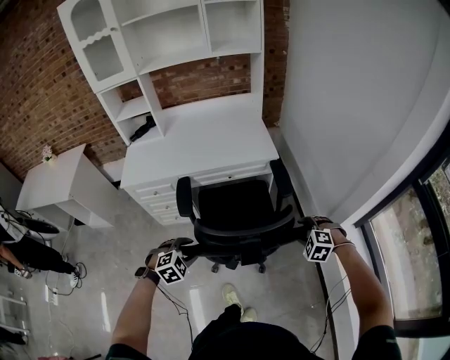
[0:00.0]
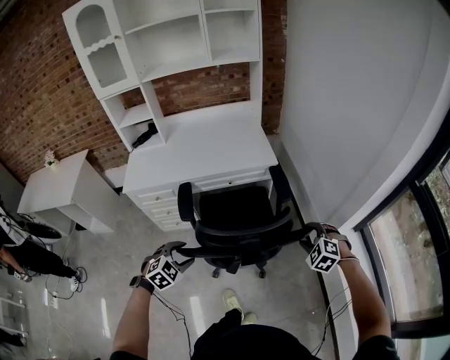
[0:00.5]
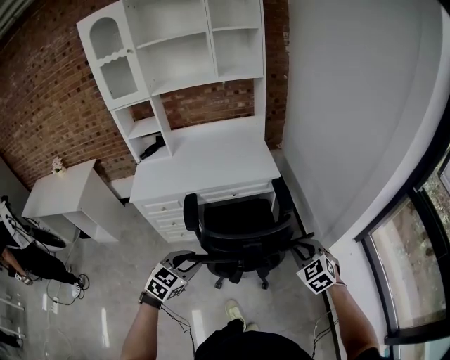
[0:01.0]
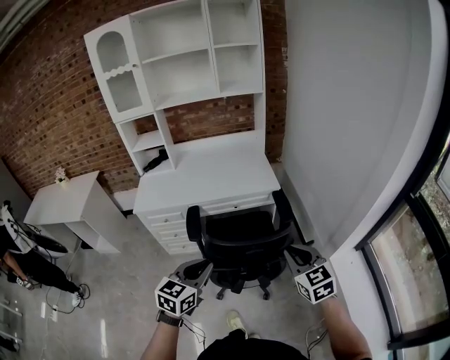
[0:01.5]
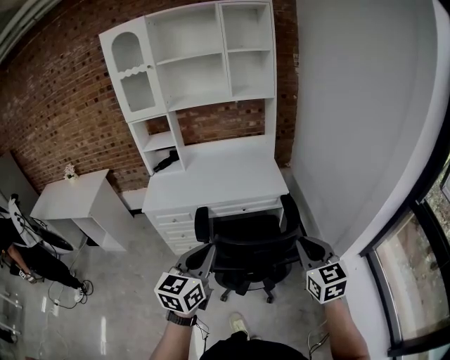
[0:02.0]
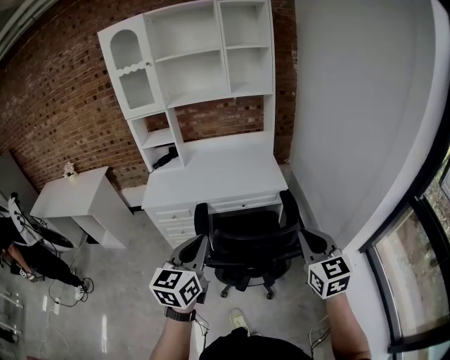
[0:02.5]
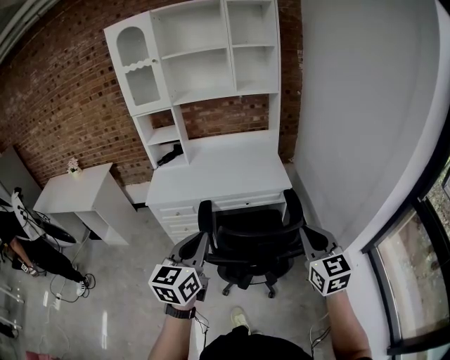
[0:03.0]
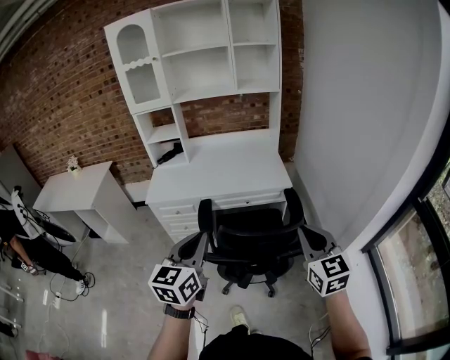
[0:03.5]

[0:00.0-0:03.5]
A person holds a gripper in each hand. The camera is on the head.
0:00.0 to 0:02.0: Both grippers travel together upward, approximately 30 cm. The right gripper tilts its fingers approximately 50 degrees upward, and closes up, while the left gripper points its fingers about 50 degrees further upward, and closes its fingers.
0:02.0 to 0:03.5: There are only small adjustments of the grippers.

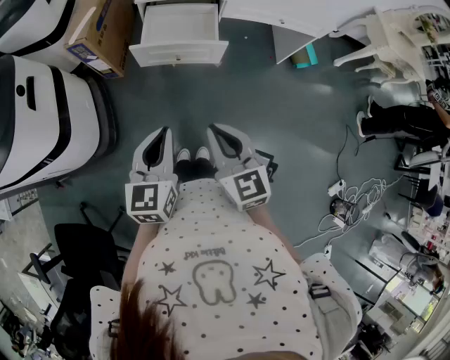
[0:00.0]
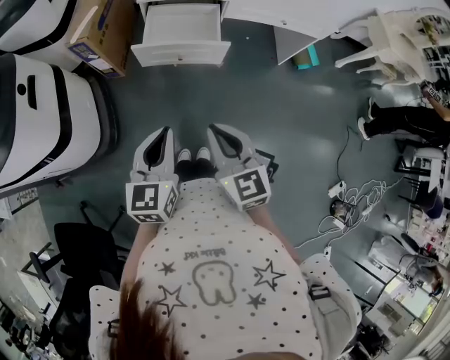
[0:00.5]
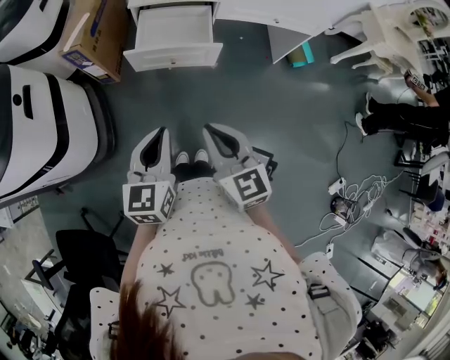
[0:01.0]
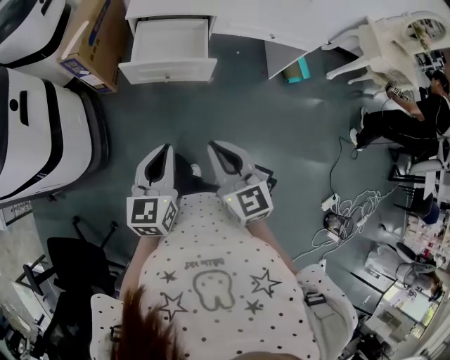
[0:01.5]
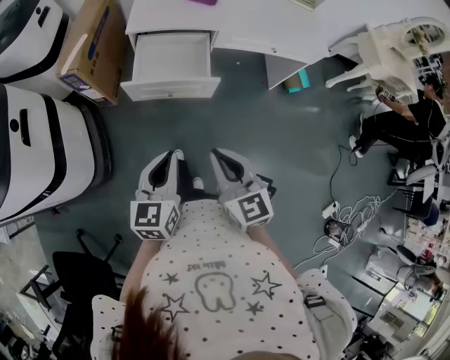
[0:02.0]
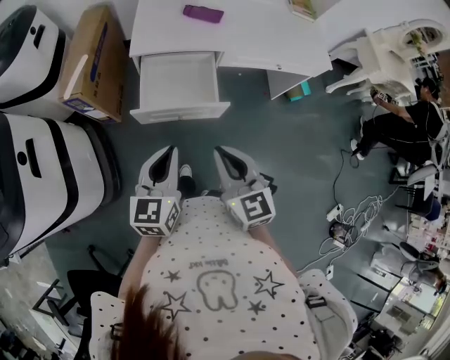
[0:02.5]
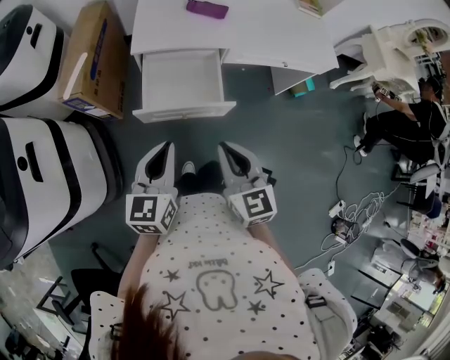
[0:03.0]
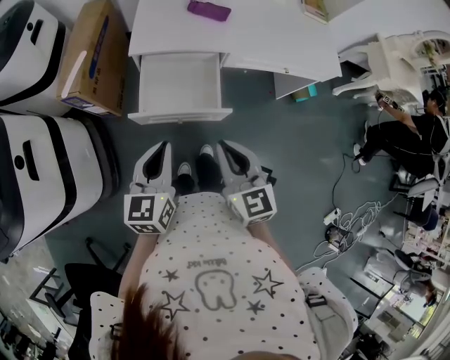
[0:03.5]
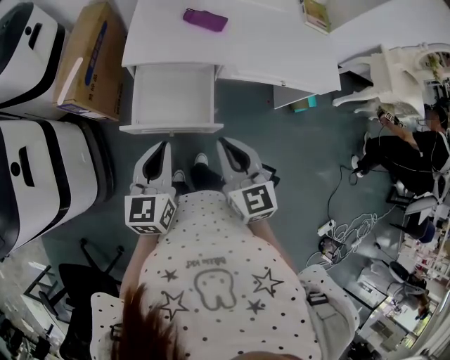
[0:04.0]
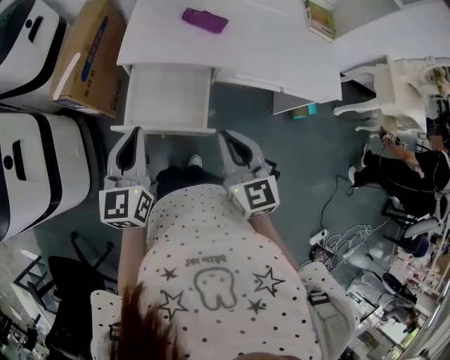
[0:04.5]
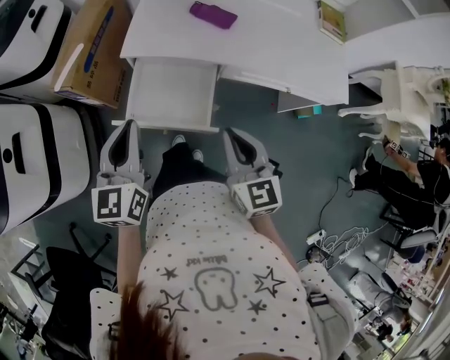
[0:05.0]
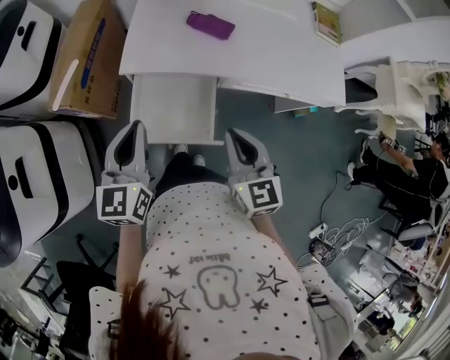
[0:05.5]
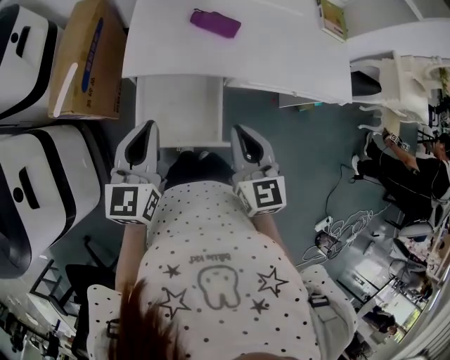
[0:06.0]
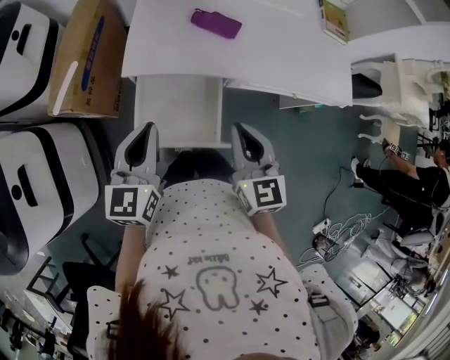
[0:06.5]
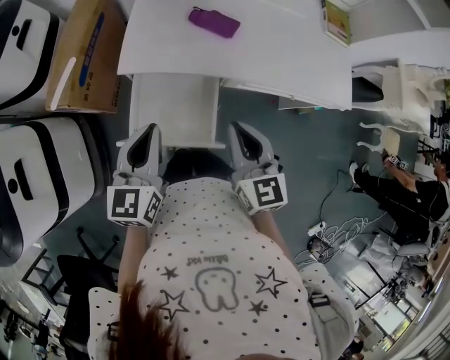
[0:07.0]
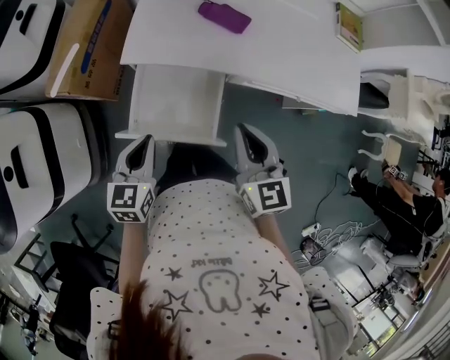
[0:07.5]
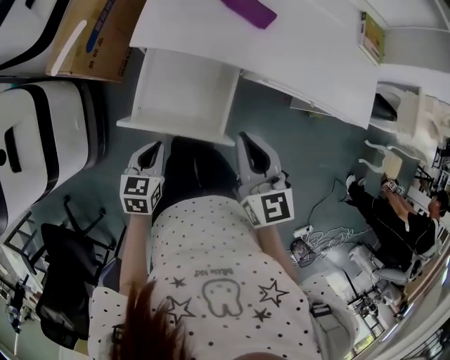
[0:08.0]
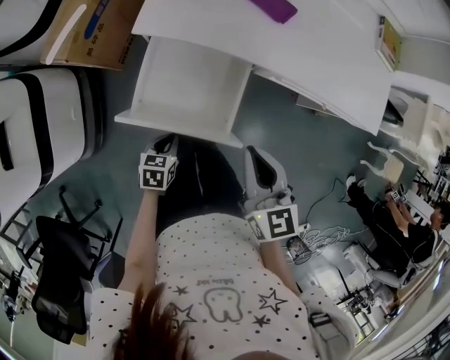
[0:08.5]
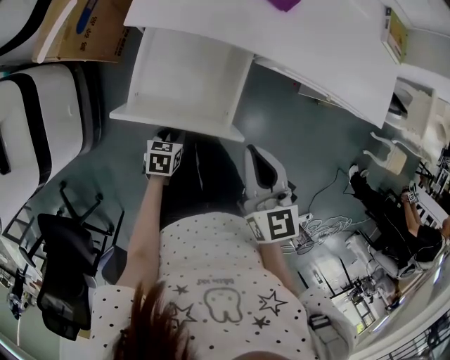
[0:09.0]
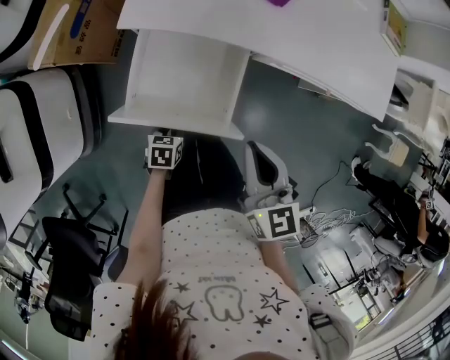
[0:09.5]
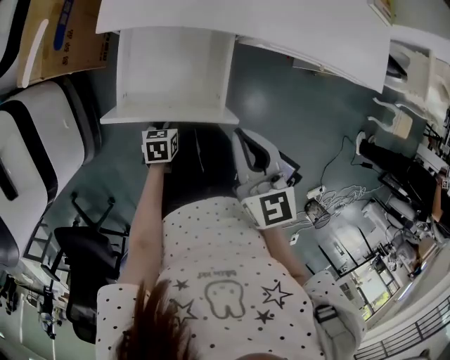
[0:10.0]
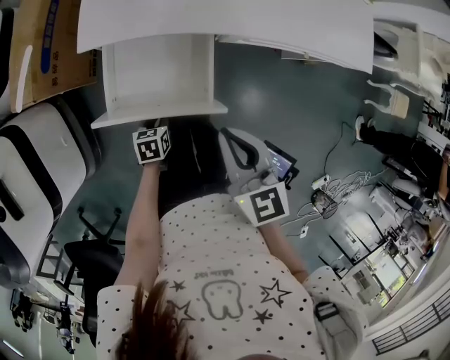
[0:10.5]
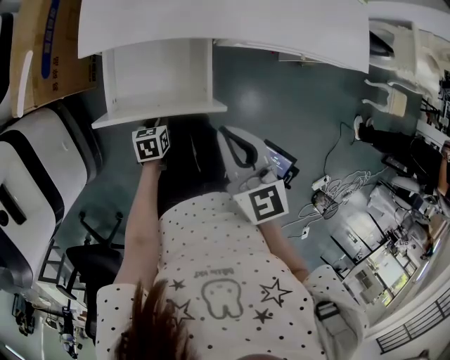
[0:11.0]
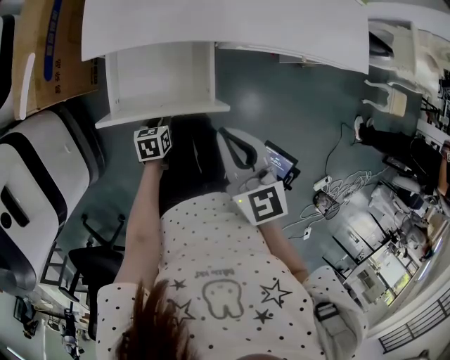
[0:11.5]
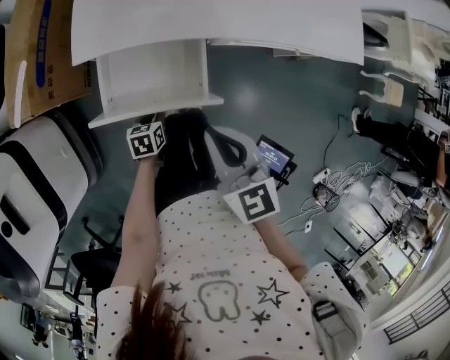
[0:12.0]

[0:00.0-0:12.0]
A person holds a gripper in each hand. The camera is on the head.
0:00.0 to 0:02.0: The grippers both shift forward by roughly 5 cm.
0:02.0 to 0:04.0: Both grippers move forward, some 20 cm.
0:04.0 to 0:06.0: Both grippers move forward, approximately 15 cm.
0:06.0 to 0:08.0: The left gripper shifts approximately 20 cm downward and backward, and tilts its fingers about 30 degrees downward.
0:08.0 to 0:10.0: The right gripper shifts by about 5 cm. The left gripper shifts approximately 20 cm downward, changes its angle by approximately 20 degrees, and opens its fingers.
0:10.0 to 0:12.0: The left gripper travels forward by about 5 cm.

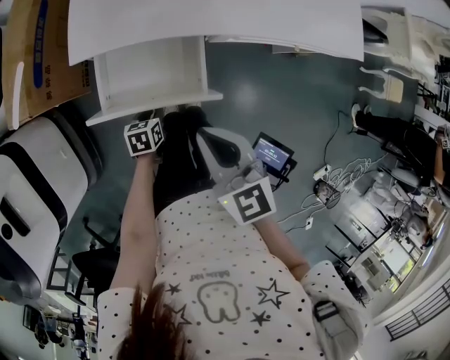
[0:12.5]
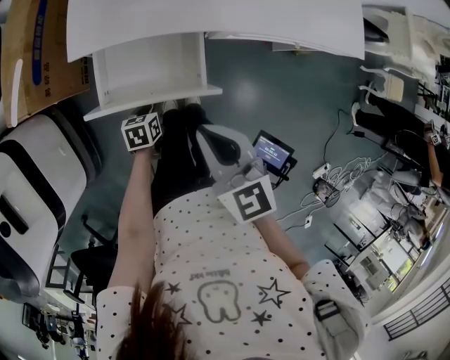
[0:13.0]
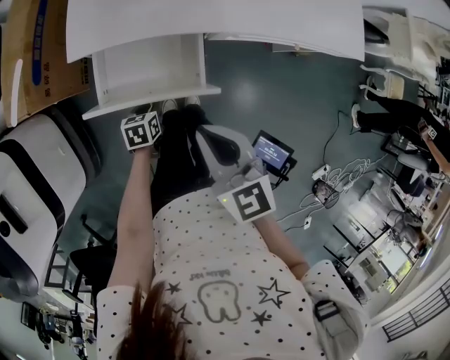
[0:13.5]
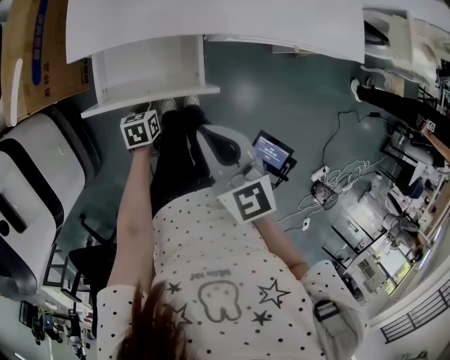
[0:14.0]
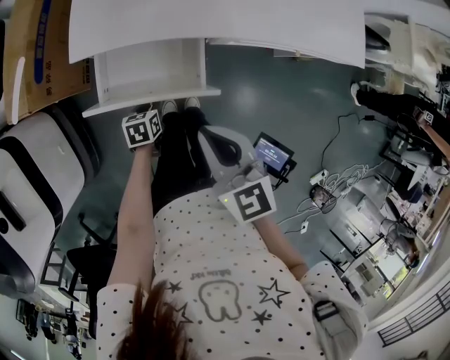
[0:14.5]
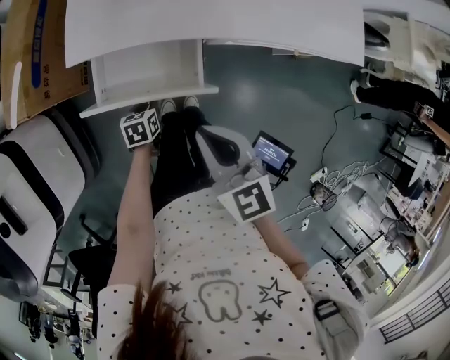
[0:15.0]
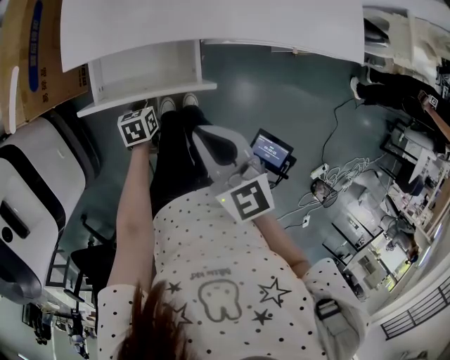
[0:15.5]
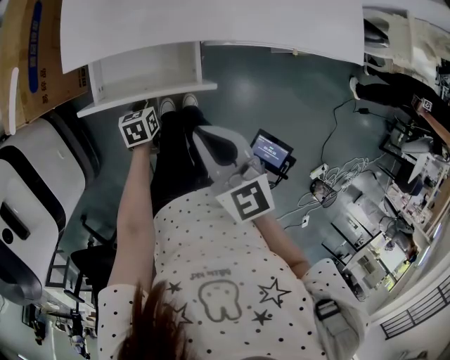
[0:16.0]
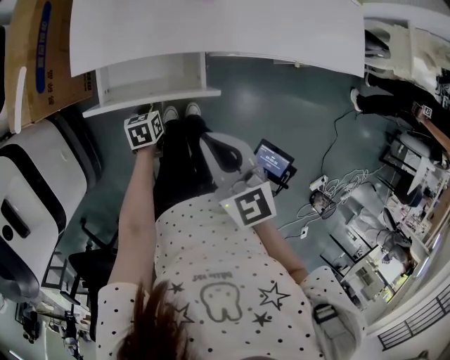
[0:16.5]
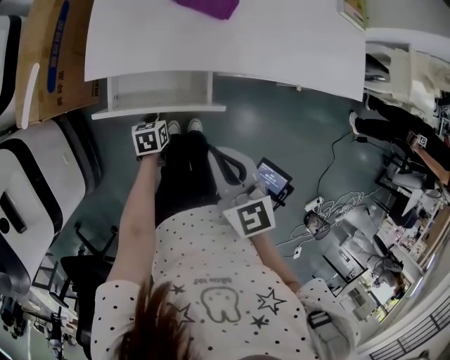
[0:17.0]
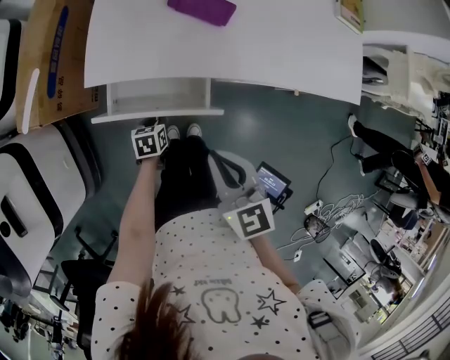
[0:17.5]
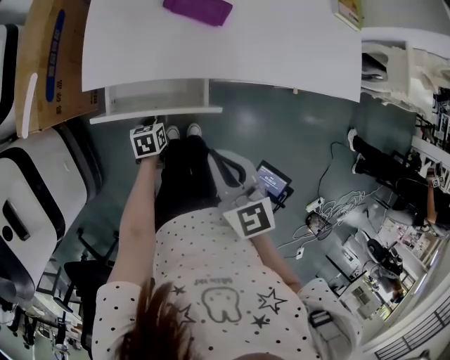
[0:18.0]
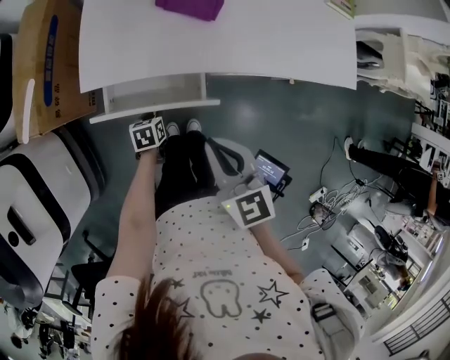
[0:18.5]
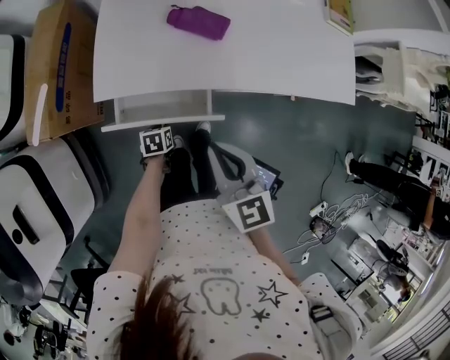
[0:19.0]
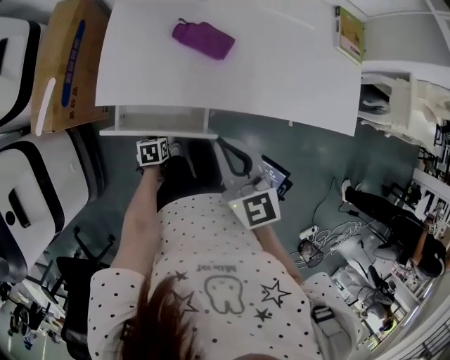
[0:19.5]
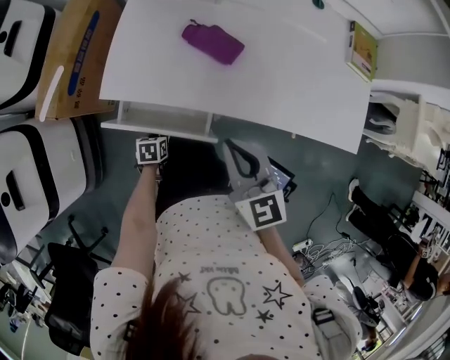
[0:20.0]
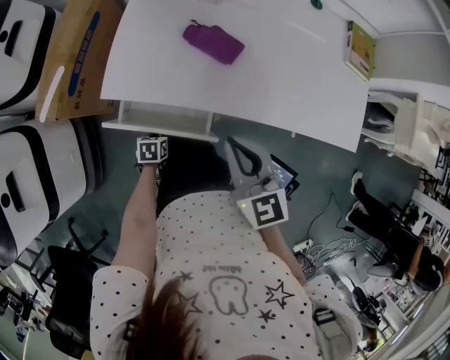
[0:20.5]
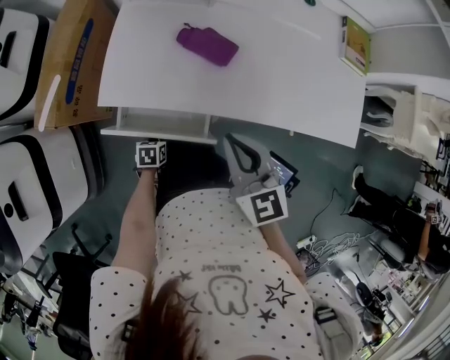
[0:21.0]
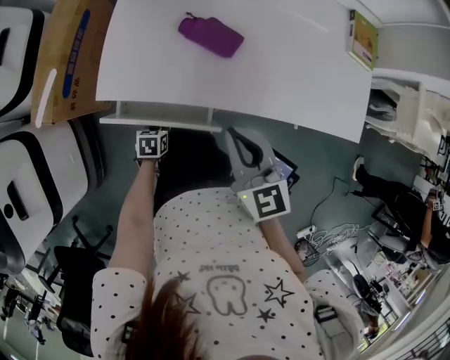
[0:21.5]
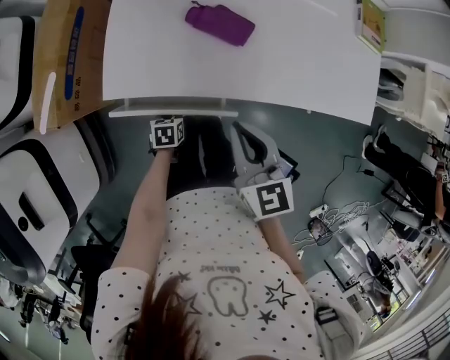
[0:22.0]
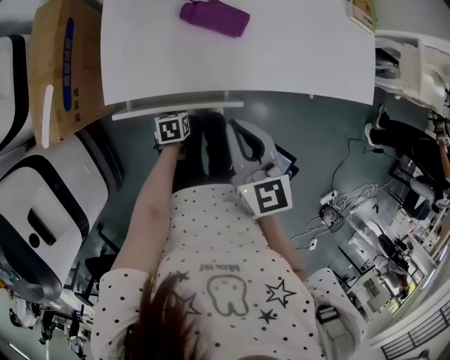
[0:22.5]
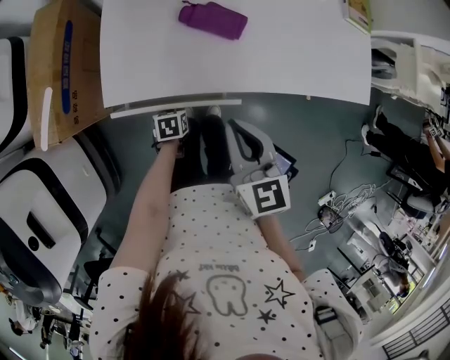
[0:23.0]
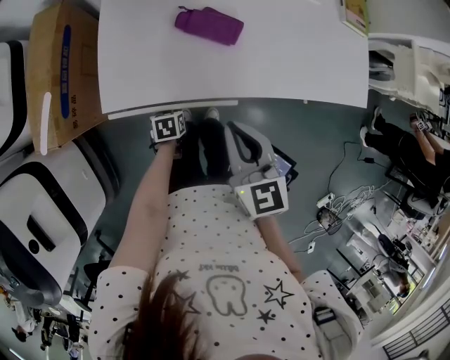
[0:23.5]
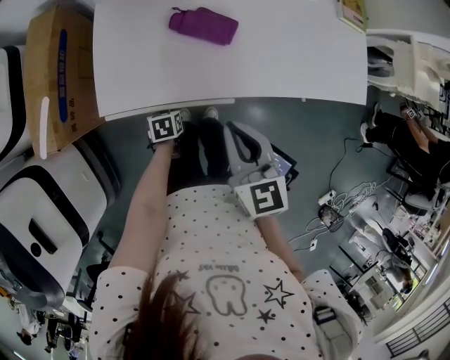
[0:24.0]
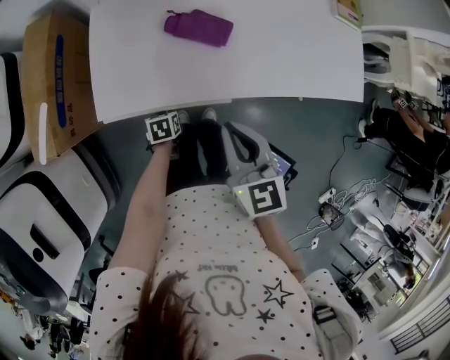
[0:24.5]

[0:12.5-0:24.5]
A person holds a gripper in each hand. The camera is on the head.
0:12.5 to 0:16.5: The grippers stay close to where they were, moving slightly.
0:16.5 to 0:18.5: There are only small adjustments of the grippers.
0:18.5 to 0:20.5: The right gripper shifts approximately 10 cm forward and to the right.
0:20.5 to 0:22.5: The right gripper shifts about 5 cm to the left.
0:22.5 to 0:24.5: The grippers move only a little.
